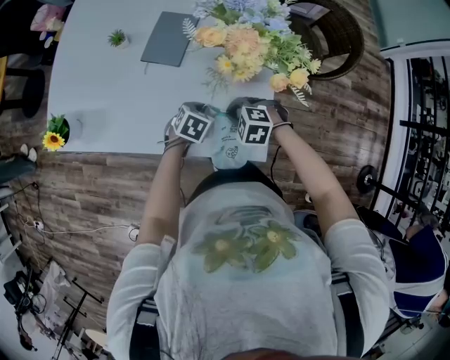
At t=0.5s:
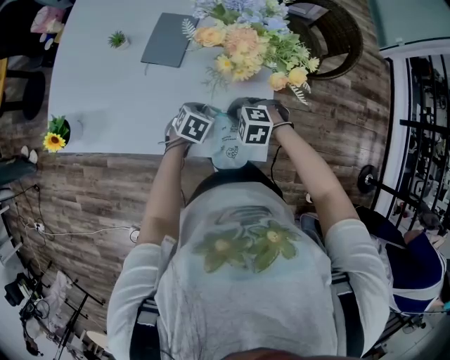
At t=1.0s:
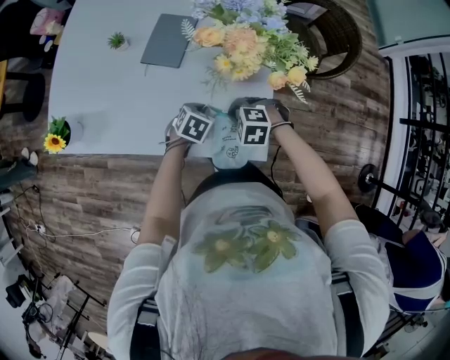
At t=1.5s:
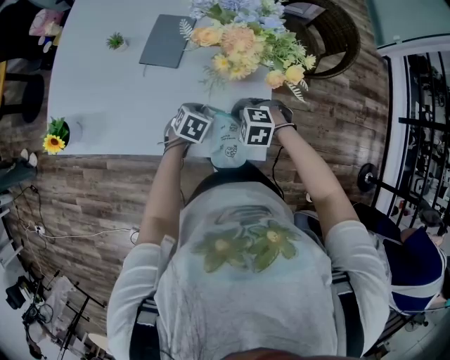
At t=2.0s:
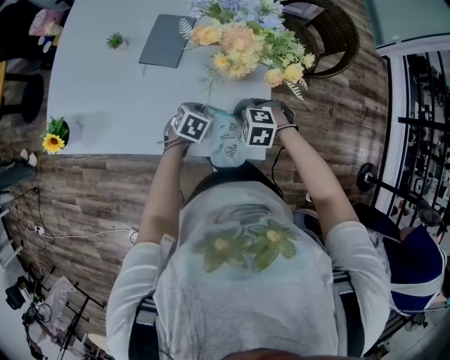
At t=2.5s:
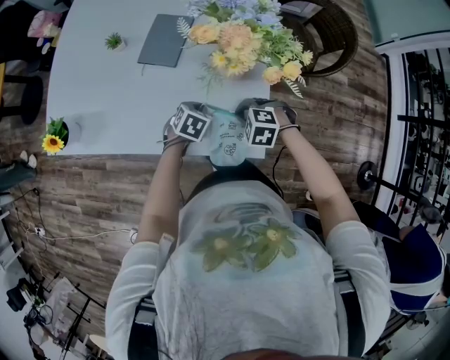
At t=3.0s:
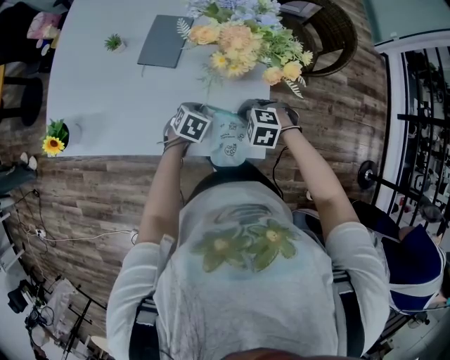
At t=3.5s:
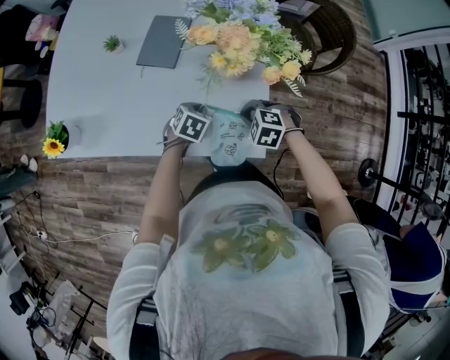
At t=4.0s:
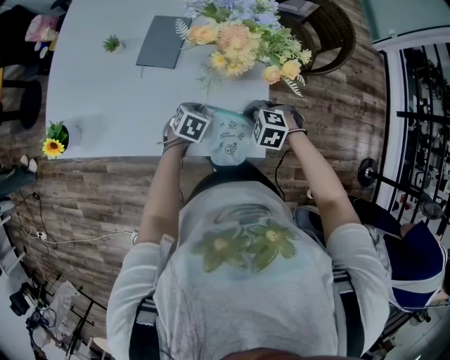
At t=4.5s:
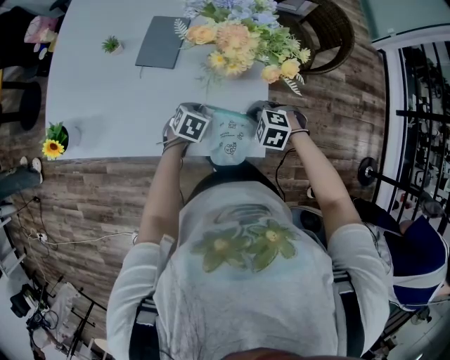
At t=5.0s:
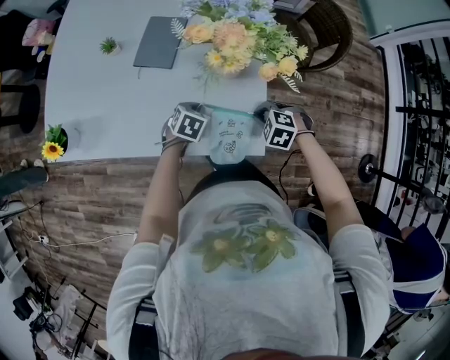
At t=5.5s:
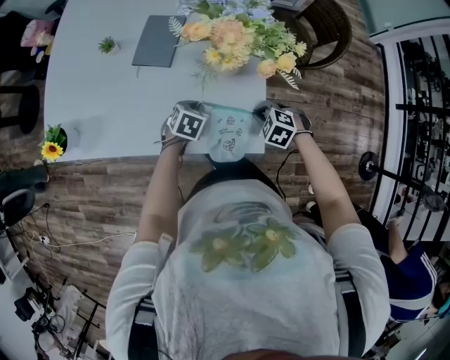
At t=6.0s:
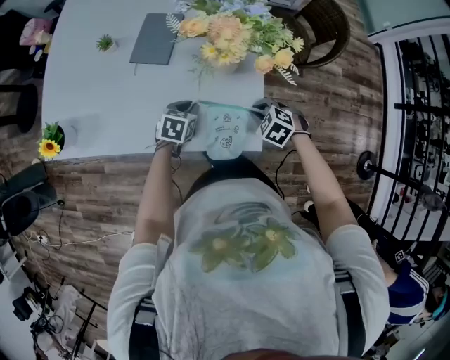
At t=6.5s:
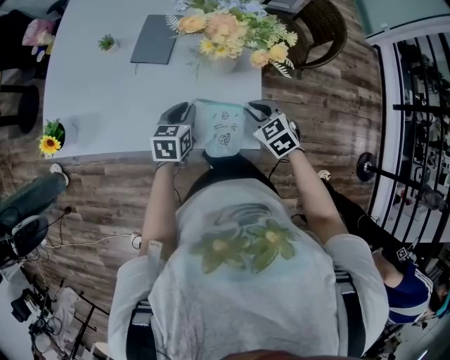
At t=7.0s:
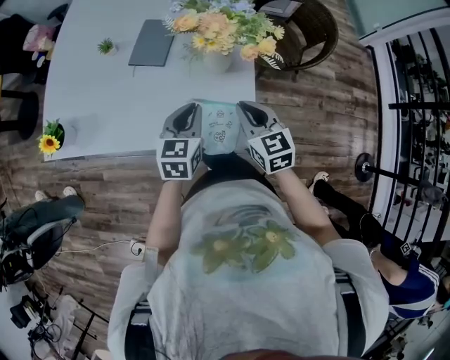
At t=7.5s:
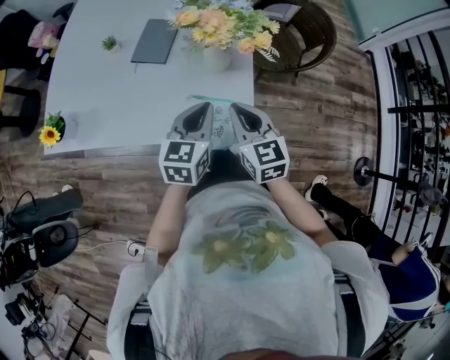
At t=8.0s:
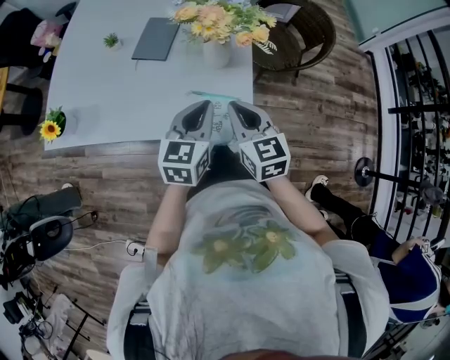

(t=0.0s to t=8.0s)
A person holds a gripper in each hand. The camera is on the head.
t=0.0s - t=2.0s: The grippers stay close to where they were, moving slightly.
t=2.0s - t=4.0s: The grippers stay close to where they were, moving slightly.
t=4.0s - t=6.0s: The right gripper changes place by about 5 cm.
t=6.0s - t=8.0s: The right gripper moves upward, roughly 20 cm, and angles its fingers upward, by about 50 degrees; the left gripper is displaced upward and backward by some 25 cm, and tilts its fingers about 30 degrees upward.

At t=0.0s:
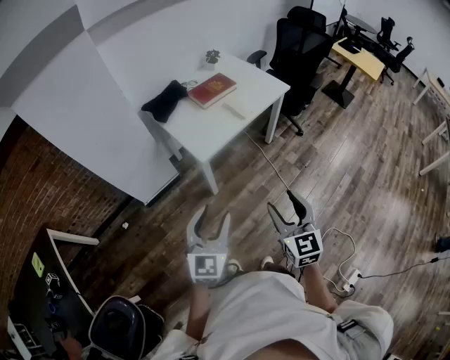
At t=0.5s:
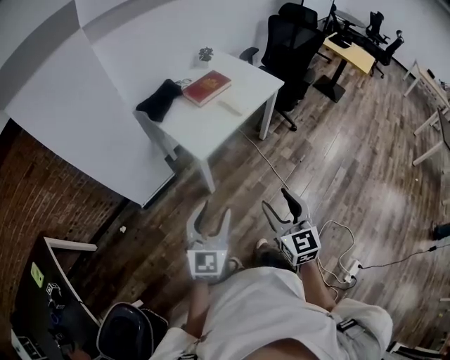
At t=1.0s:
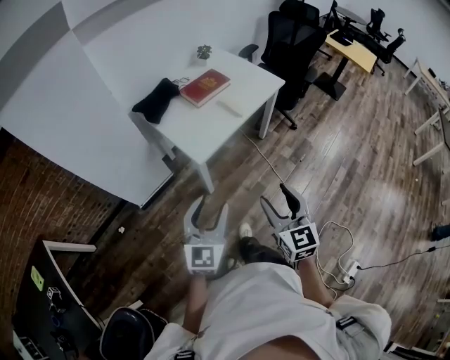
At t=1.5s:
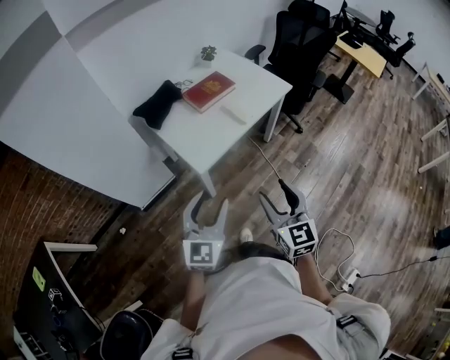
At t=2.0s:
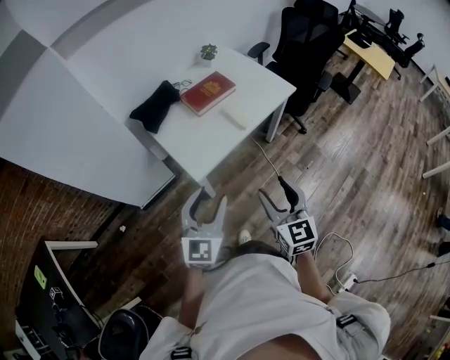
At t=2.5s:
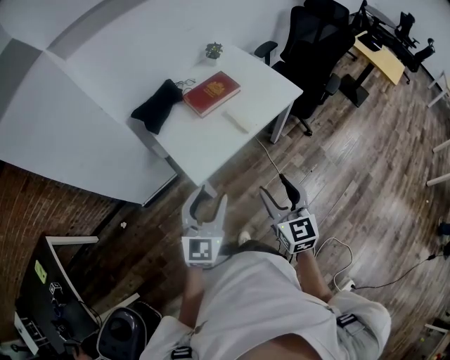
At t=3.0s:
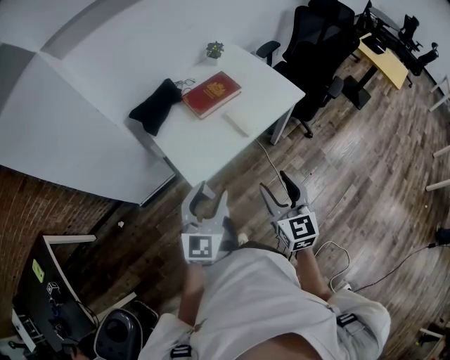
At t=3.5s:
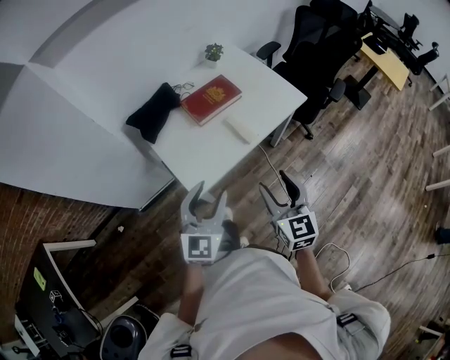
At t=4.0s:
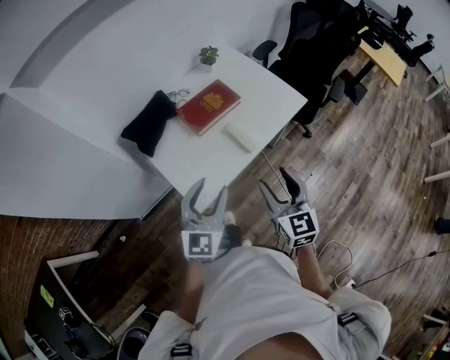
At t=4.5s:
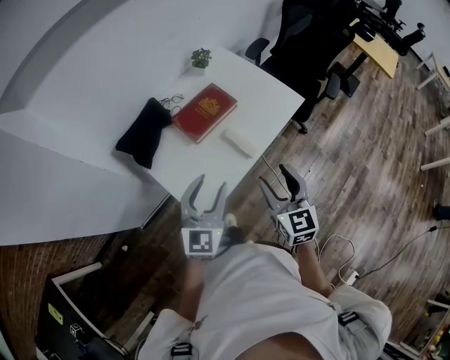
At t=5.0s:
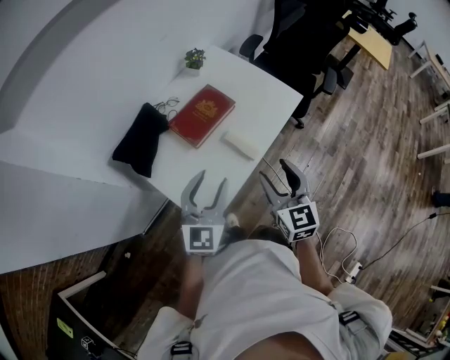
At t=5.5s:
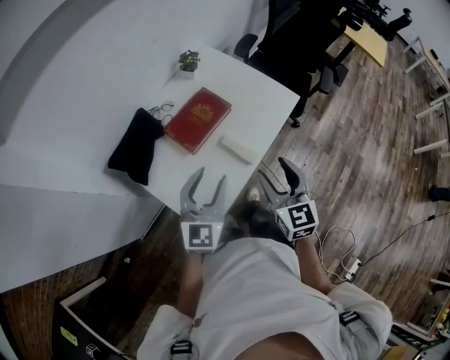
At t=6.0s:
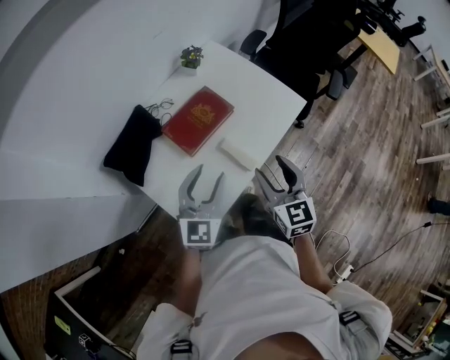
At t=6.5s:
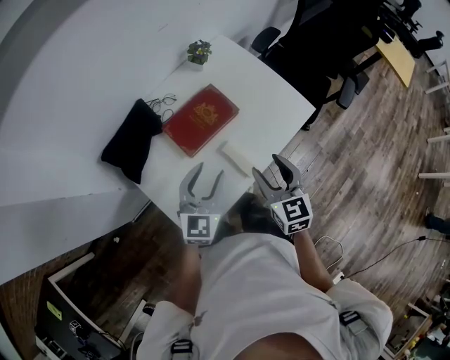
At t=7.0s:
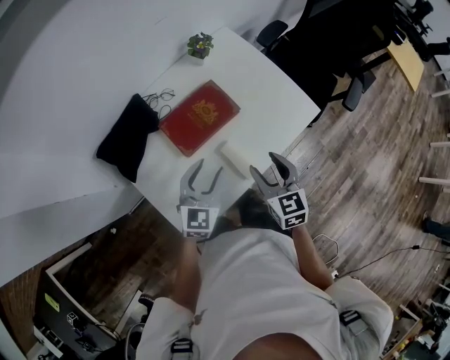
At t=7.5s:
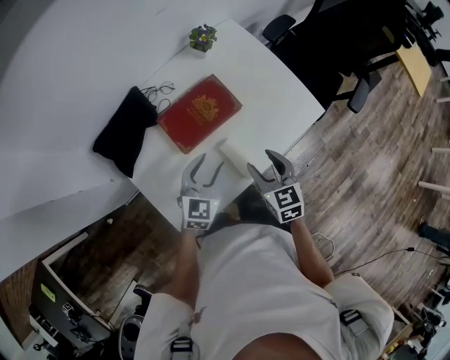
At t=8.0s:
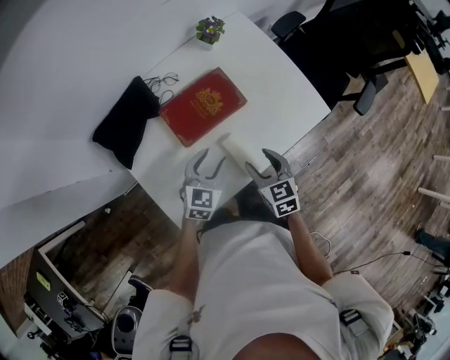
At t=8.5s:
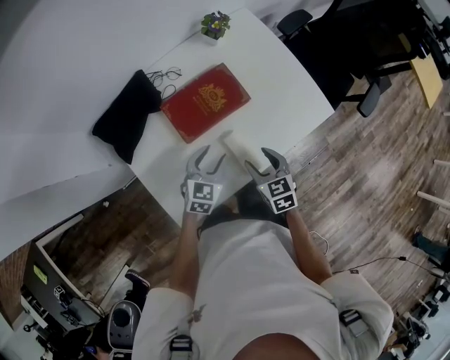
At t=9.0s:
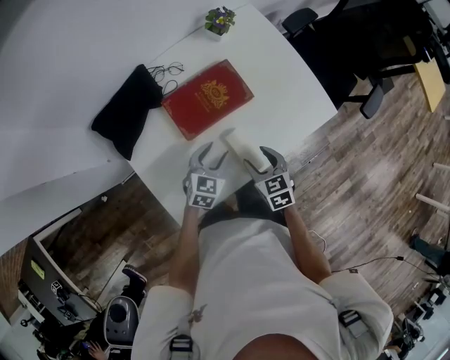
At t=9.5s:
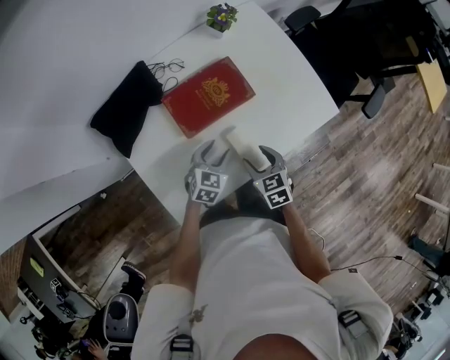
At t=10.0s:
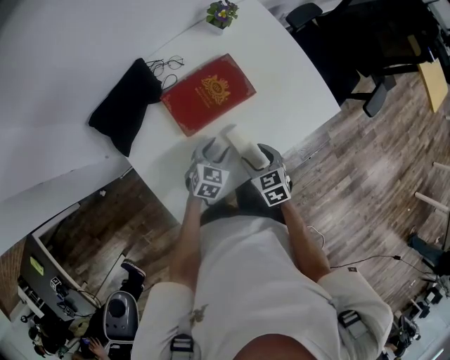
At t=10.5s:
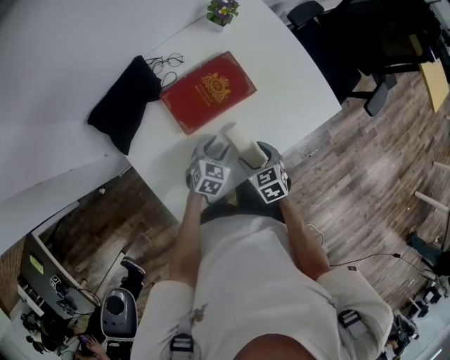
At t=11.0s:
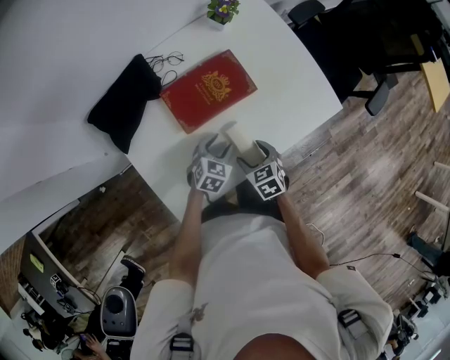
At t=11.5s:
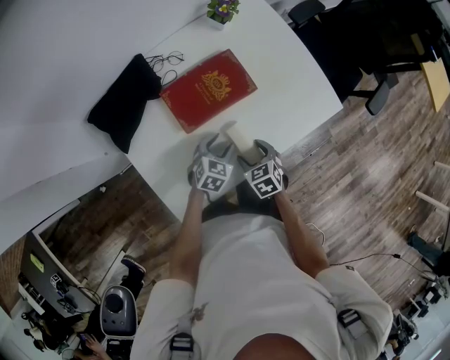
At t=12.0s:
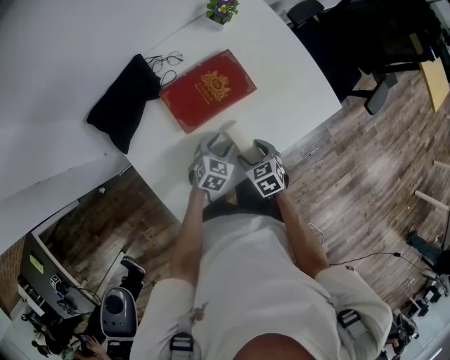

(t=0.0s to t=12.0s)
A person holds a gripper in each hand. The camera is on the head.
t=0.0s - t=2.0s: The grippers both shift forward by roughly 20 cm.
t=2.0s - t=4.0s: Both grippers travel together forward, roughly 20 cm.
t=4.0s - t=6.0s: The two grippers go approximately 15 cm forward.
t=6.0s - t=8.0s: Both grippers move downward and forward, roughly 20 cm. The left gripper swivels some 20 degrees; the right gripper turns by some 30 degrees.
t=8.0s - t=10.0s: Both grippers travel together downward, about 10 cm.
t=10.0s - t=12.0s: The grippers move only a little.

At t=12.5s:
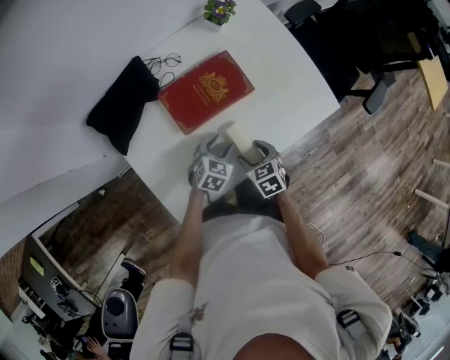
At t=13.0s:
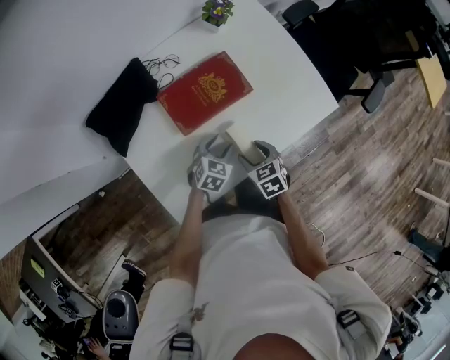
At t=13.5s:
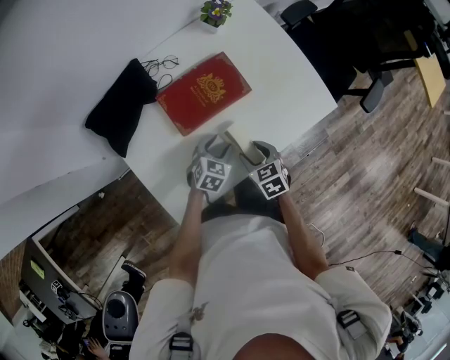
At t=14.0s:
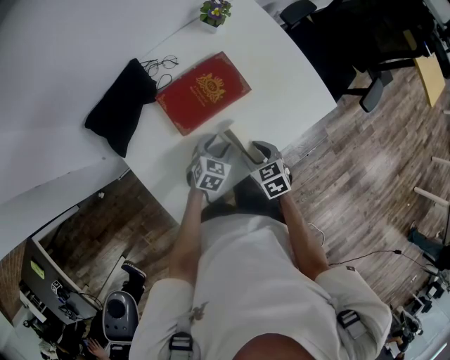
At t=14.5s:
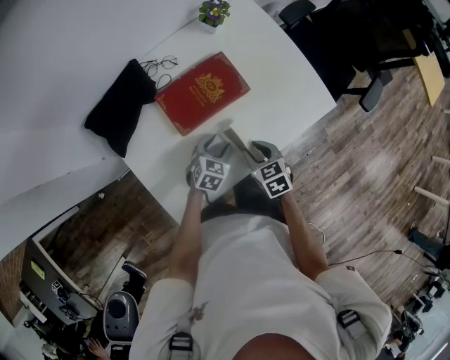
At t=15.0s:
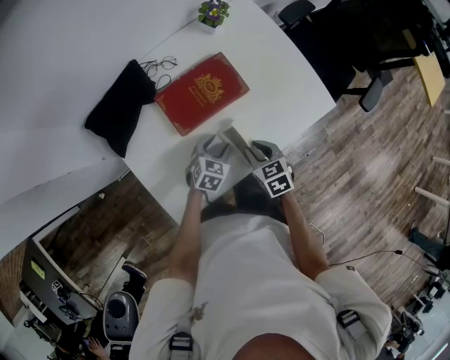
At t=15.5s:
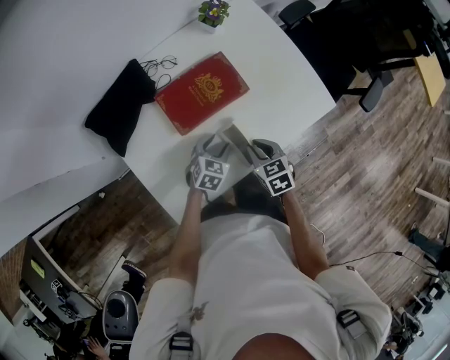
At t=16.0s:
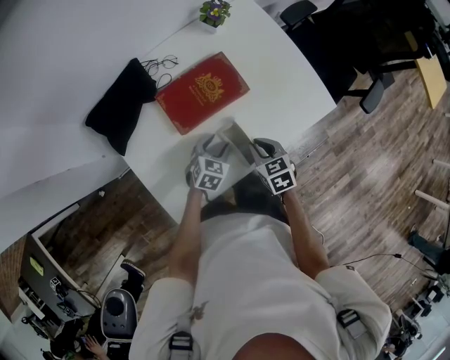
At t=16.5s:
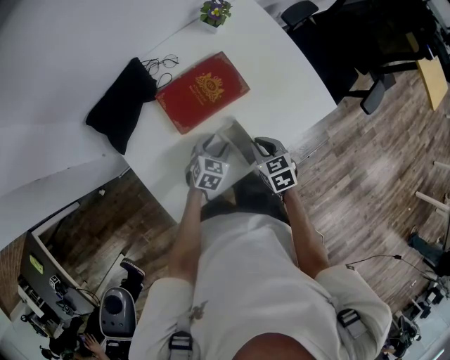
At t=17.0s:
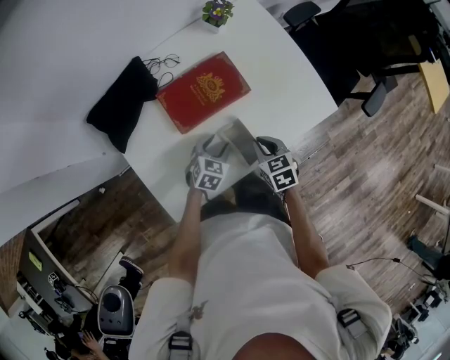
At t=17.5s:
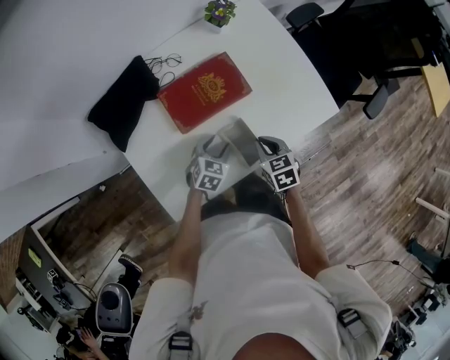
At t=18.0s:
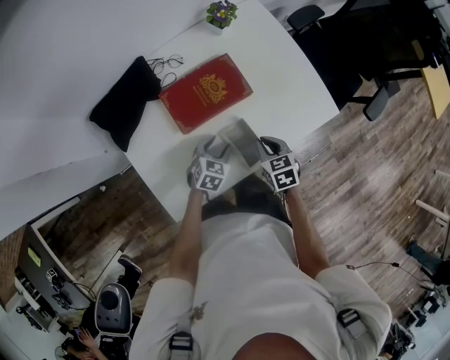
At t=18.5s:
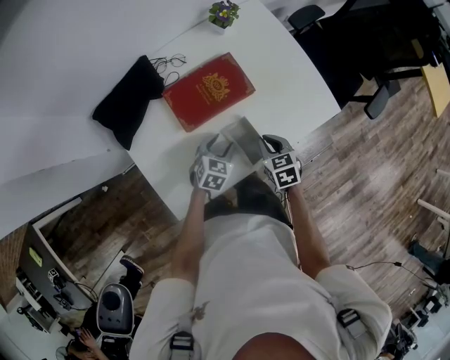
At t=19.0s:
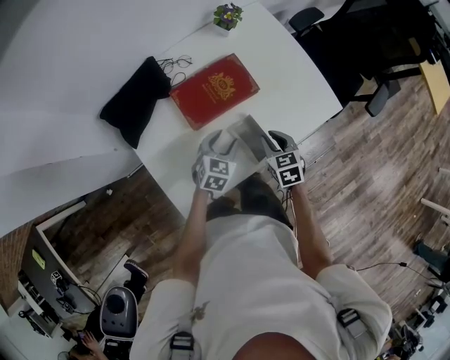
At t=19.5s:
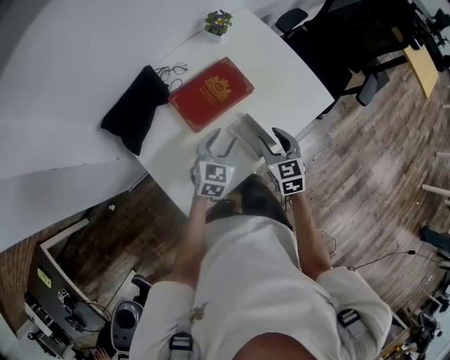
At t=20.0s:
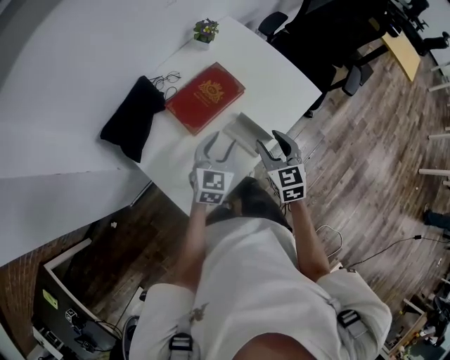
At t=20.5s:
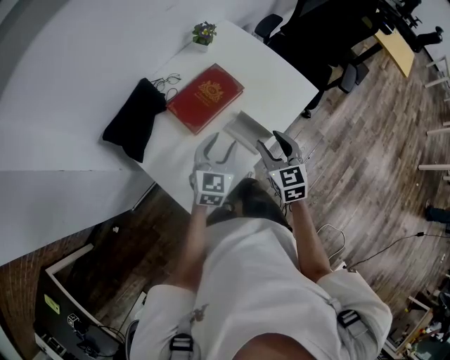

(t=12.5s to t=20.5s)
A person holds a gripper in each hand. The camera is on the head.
t=12.5s - t=14.5s: The right gripper closes up.
t=14.5s - t=18.5s: There are only small adjustments of the grippers.
t=18.5s - t=20.5s: The right gripper is displaced upward and backward by about 20 cm, rotates roughly 30 degrees, and opens, while the left gripper goes approximately 20 cm upward, and turns by about 30 degrees.
